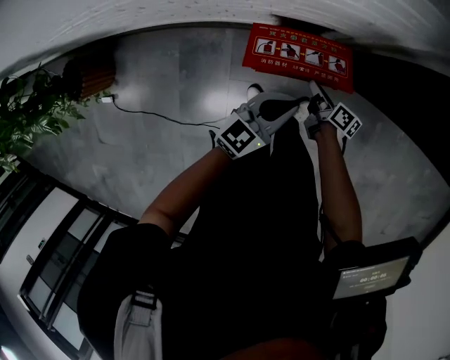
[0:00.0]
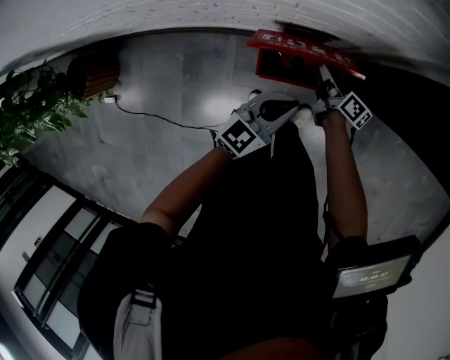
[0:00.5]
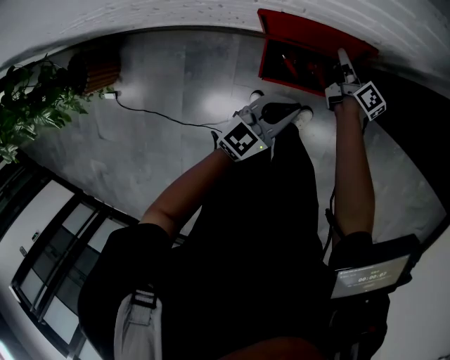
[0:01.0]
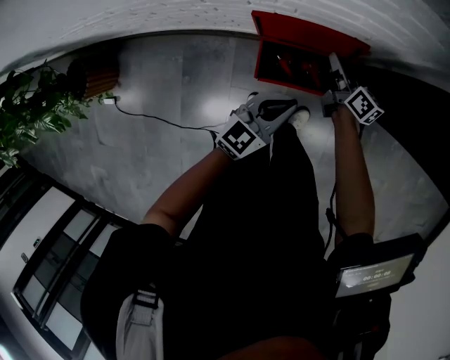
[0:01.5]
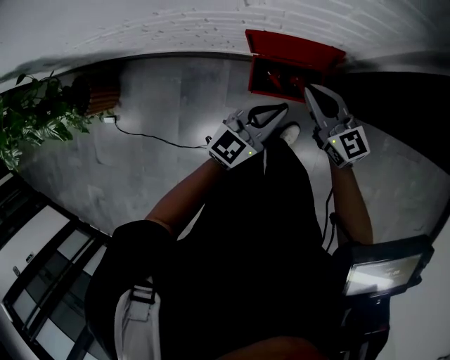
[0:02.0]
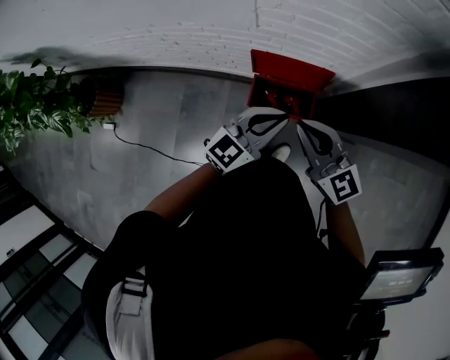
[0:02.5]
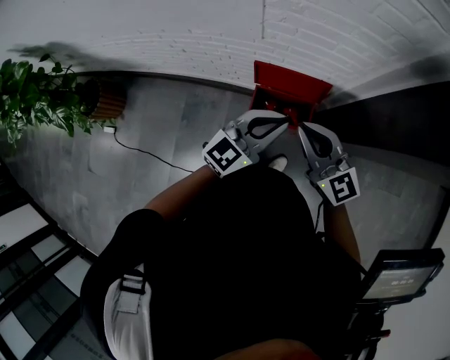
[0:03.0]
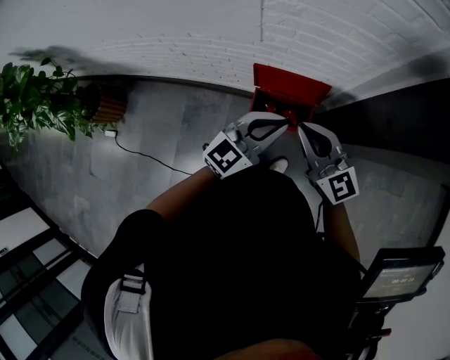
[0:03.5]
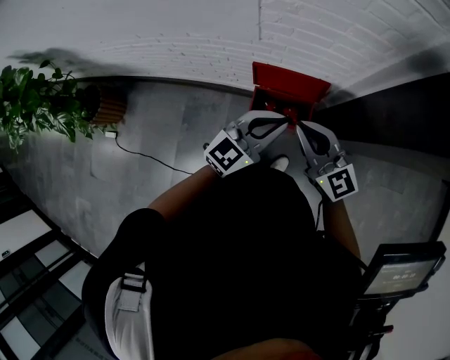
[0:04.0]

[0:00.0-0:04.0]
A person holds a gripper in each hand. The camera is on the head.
0:00.0 to 0:02.0: The right gripper travels upward by approximately 35 cm, and rolls counterclockwise, seen from behind, by some 60 degrees; the left gripper travels upward by roughly 15 cm.
0:02.0 to 0:04.0: The left gripper heads upward, covering roughly 15 cm; the right gripper shifts approximately 20 cm upward and backward.

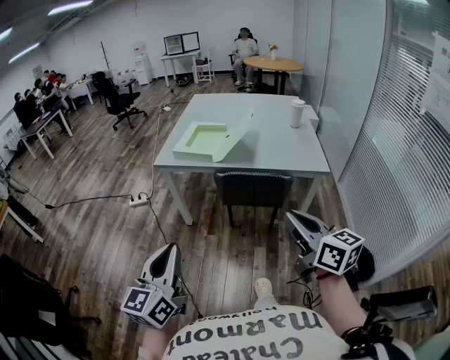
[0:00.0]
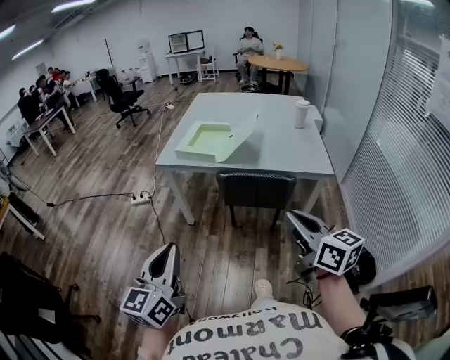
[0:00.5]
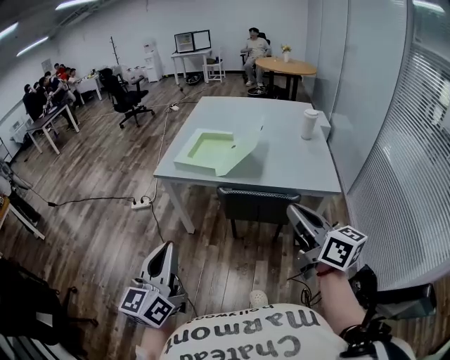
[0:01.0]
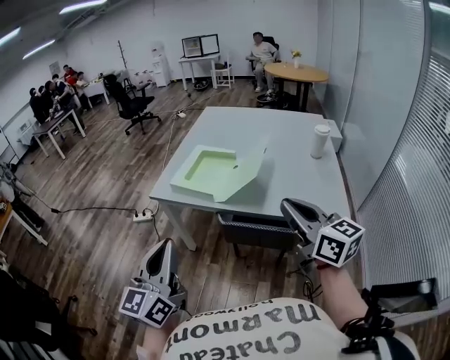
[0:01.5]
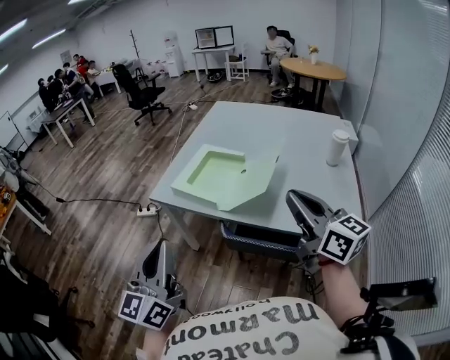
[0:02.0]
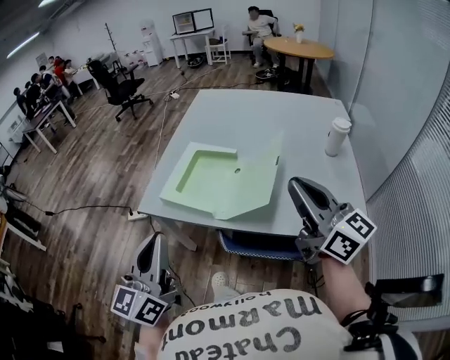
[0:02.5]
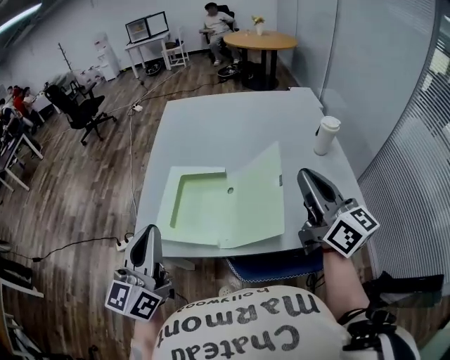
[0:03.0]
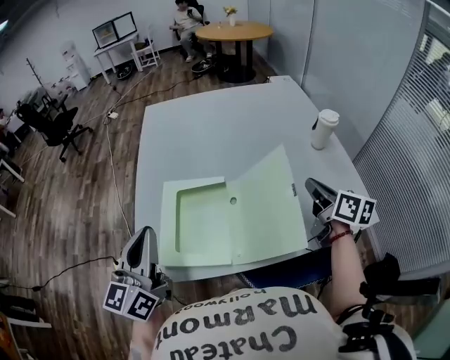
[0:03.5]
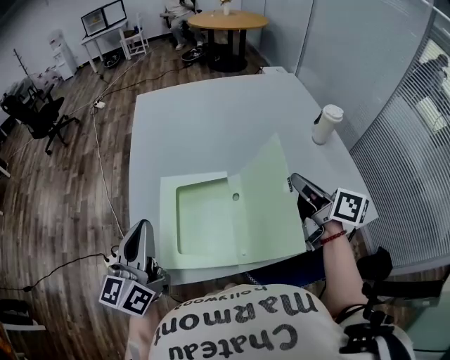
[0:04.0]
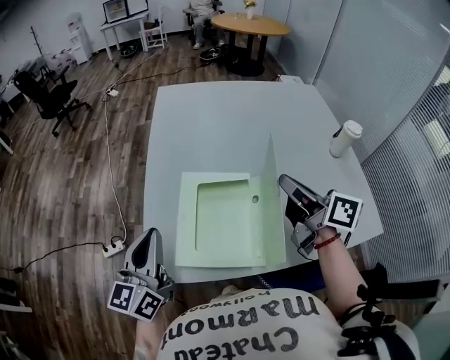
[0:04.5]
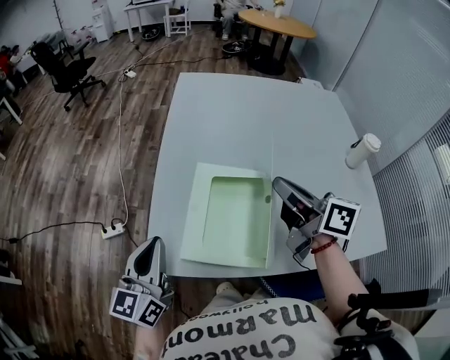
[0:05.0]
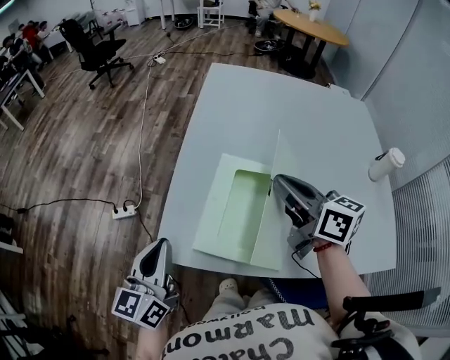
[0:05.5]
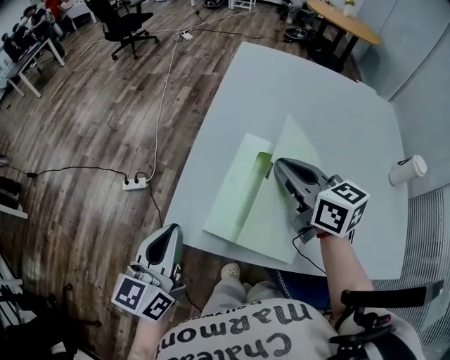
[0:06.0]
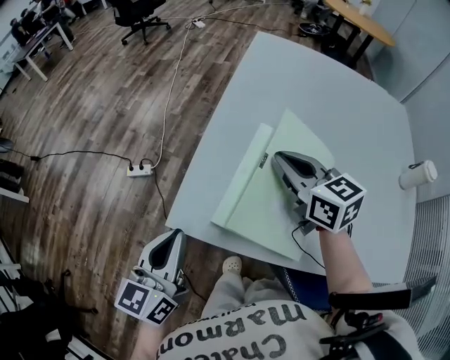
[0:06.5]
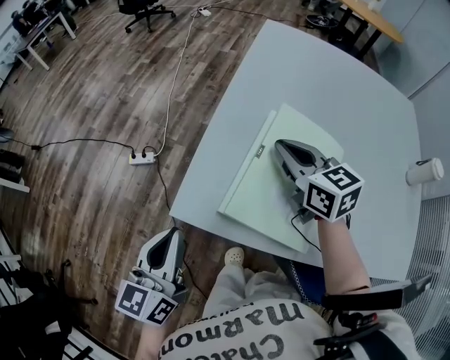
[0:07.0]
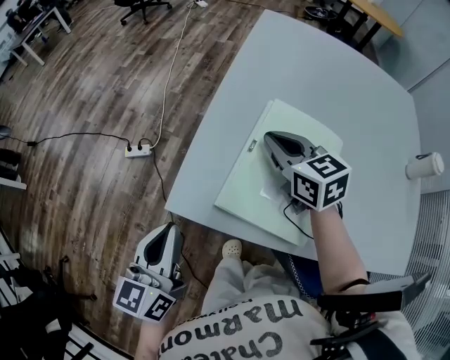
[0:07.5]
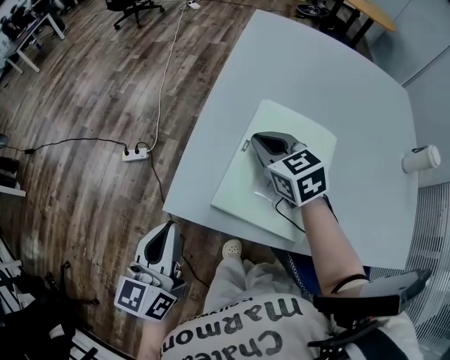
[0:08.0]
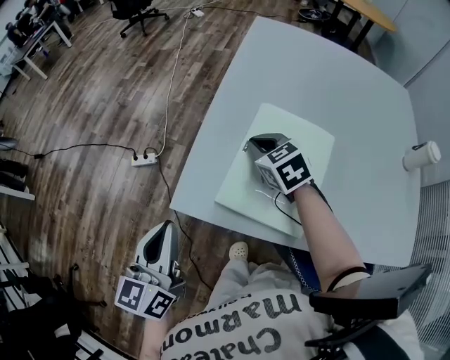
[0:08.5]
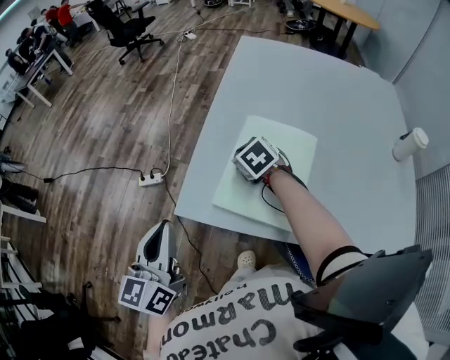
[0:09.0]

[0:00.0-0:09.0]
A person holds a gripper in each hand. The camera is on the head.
0:00.0 to 0:02.0: Both grippers travel together forward, approximately 30 cm.
0:02.0 to 0:04.5: The right gripper shifts by about 35 cm, and swivels approximately 30 degrees; the left gripper moves approximately 40 cm, and rotates roughly 30 degrees.
0:04.5 to 0:07.0: The left gripper heads downward, to the left and backward, covering about 20 cm, and changes its angle by roughly 20 degrees. Meanwhile the right gripper heads to the left, downward and forward, covering some 30 cm, and turns by about 40 degrees.
0:07.0 to 0:09.0: The right gripper travels downward by some 10 cm, and tips its fingers downward by about 30 degrees, while the left gripper is displaced upward by approximately 10 cm.

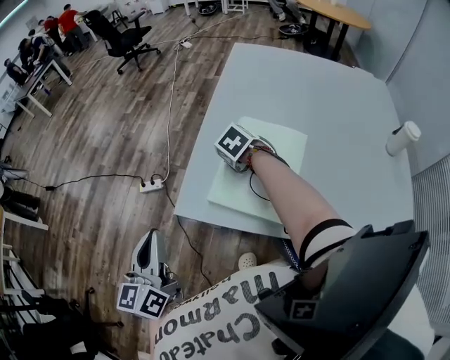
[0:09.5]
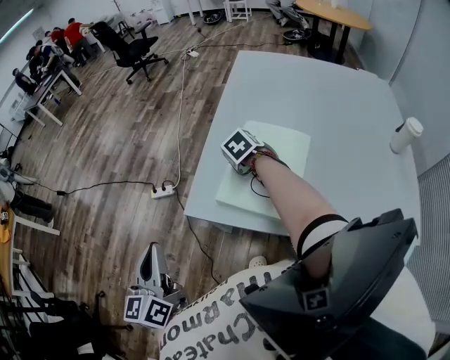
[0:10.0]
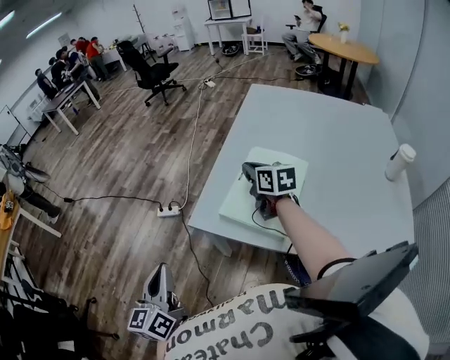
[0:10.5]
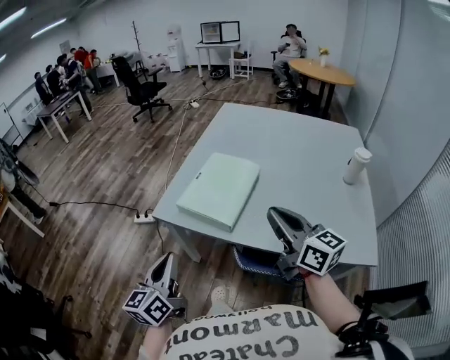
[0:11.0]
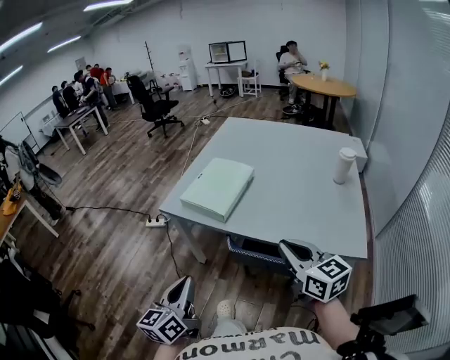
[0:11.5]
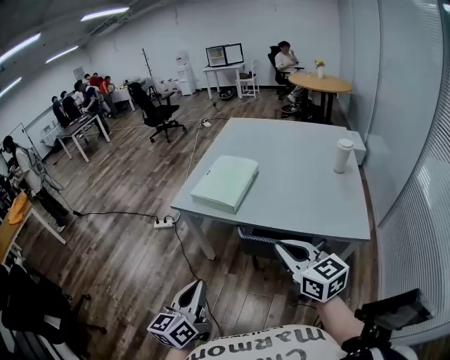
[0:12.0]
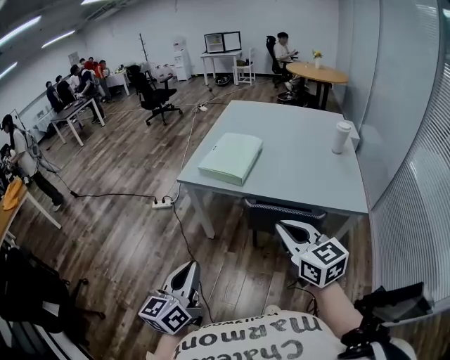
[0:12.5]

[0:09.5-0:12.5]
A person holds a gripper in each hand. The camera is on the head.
0:09.5 to 0:11.0: The left gripper goes roughly 20 cm backward and to the right. Meanwhile the right gripper moves backward, upward and to the right, roughly 40 cm, and angles its fingers upward, by roughly 70 degrees.
0:11.0 to 0:12.5: The two grippers go approximately 30 cm backward. The right gripper rotates about 20 degrees.

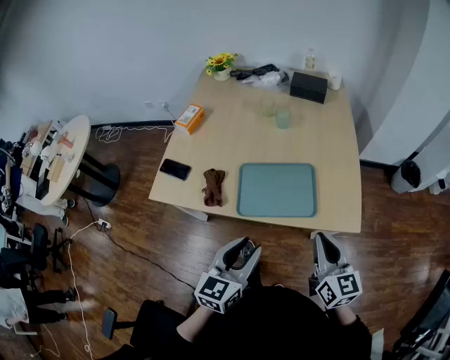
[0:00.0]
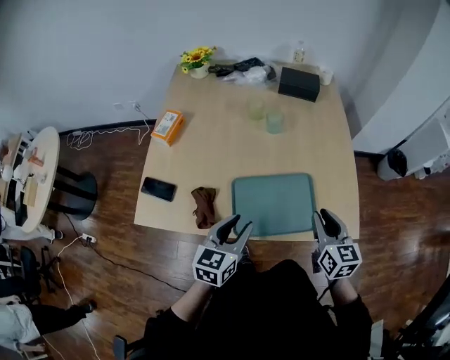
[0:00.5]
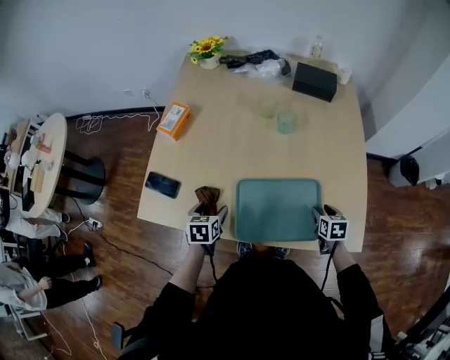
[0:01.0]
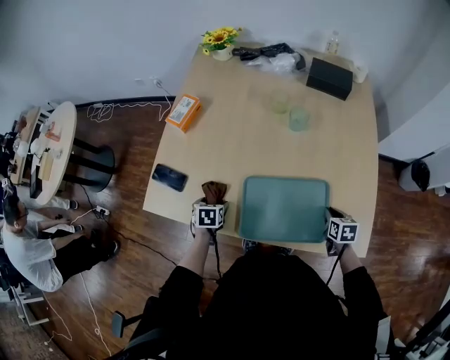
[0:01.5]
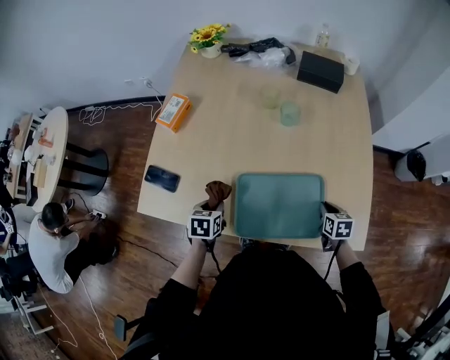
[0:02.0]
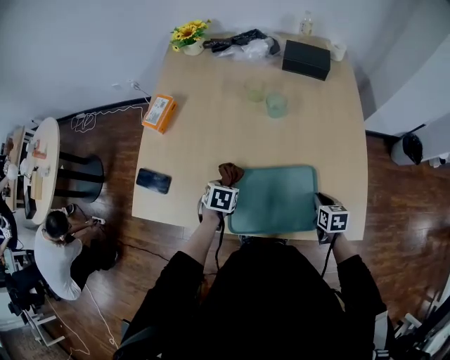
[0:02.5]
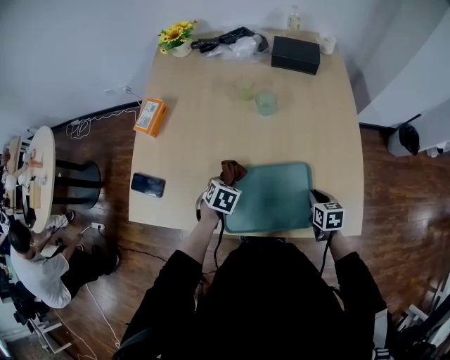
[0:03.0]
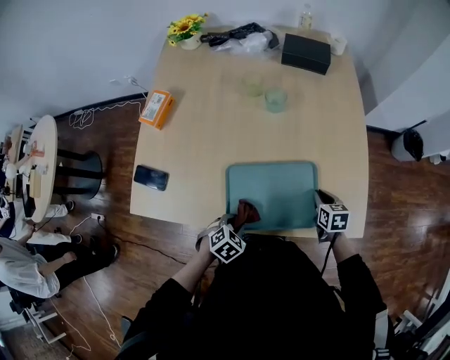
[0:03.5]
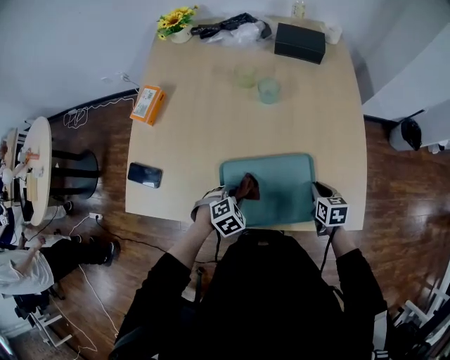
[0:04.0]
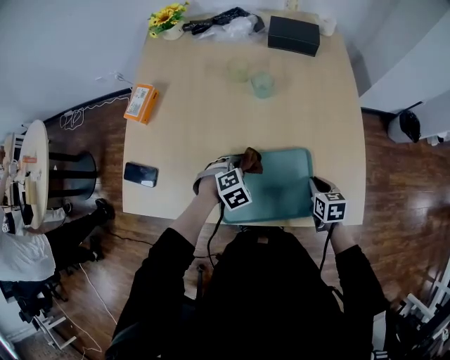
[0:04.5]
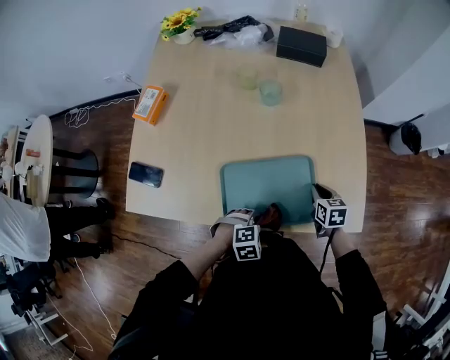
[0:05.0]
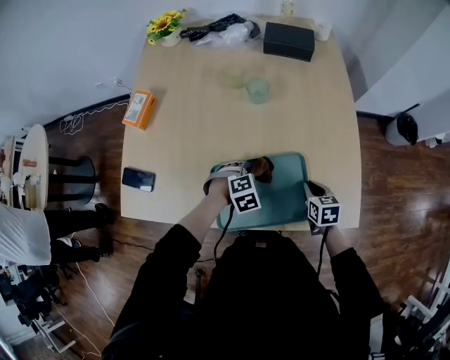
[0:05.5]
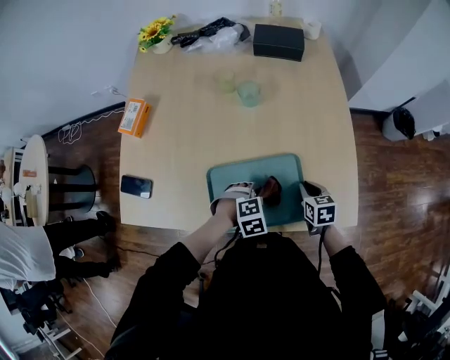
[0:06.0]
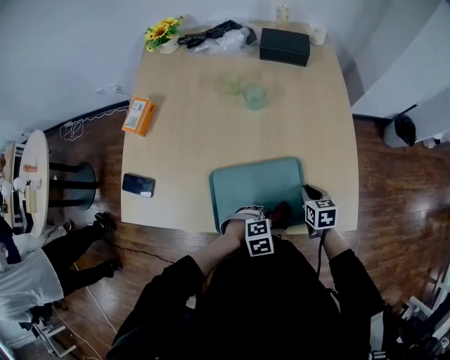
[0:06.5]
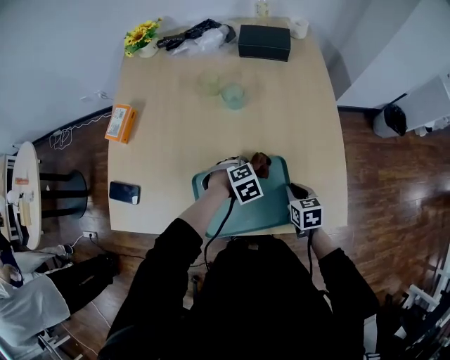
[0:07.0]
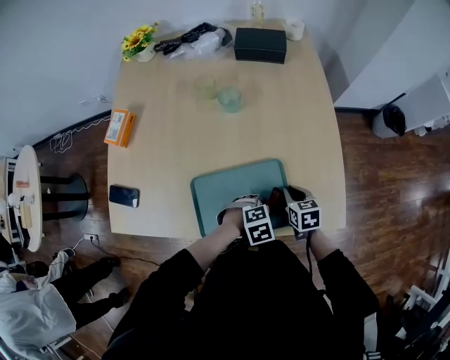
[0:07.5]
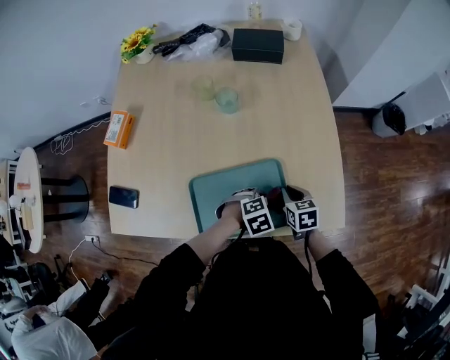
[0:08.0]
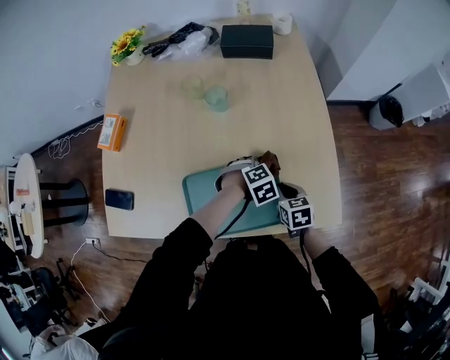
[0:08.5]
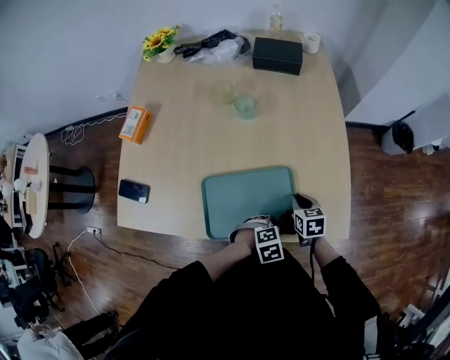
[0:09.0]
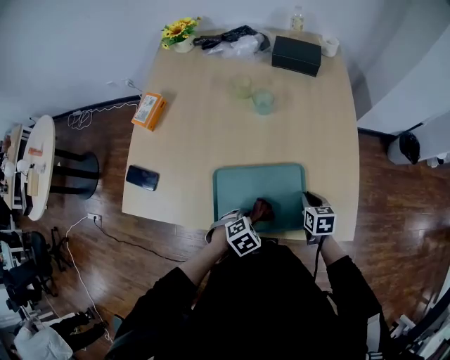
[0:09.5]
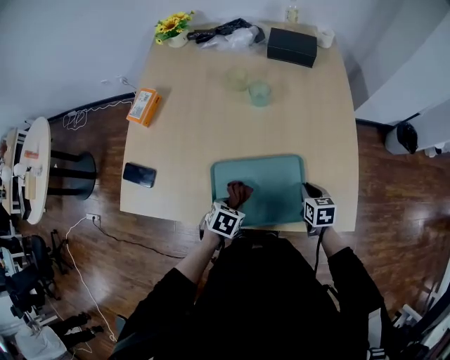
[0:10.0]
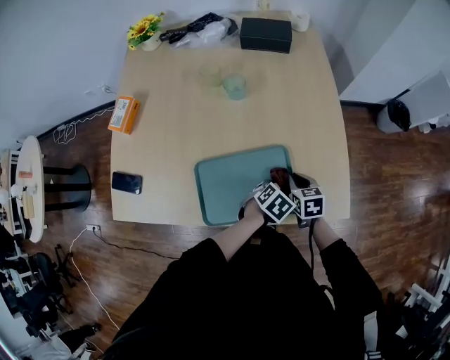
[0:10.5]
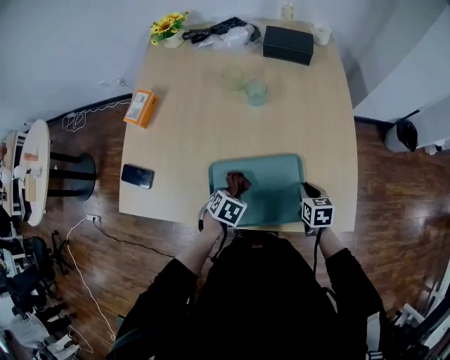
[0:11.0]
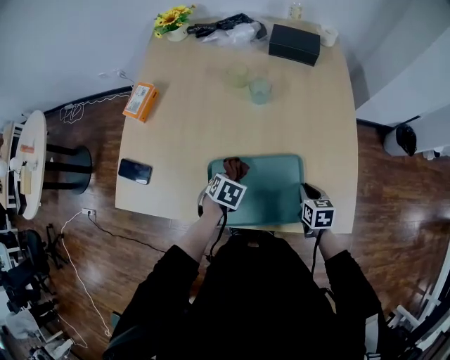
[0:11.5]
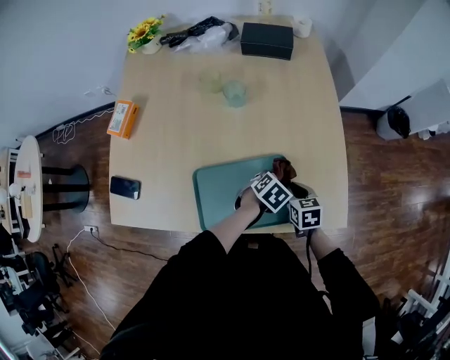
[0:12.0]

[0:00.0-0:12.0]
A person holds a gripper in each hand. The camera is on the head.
0:00.0 to 0:02.0: The left gripper moves forward, downward and to the left, approximately 35 cm, tips its fingers downward by about 40 degrees, and opens, then closes once more. The right gripper shifts about 35 cm downward and forward, tilts its fingers some 40 degrees downward, and opens, then closes again.
0:02.0 to 0:04.0: The left gripper goes forward and backward, some 15 cm each way, reversing 2 times, and twists some 60 degrees clockwise, seen from behind.
0:04.0 to 0:06.0: The left gripper moves forward and backward over approximately 15 cm, changing direction 3 times.
0:06.0 to 0:08.0: The left gripper swings forward and backward, roughly 15 cm each way, with 2 reversals.
0:08.0 to 0:10.0: The left gripper moves approximately 15 cm, and rotates around the line of its fingers by about 50 degrees, counterclockwise from behind.
0:10.0 to 0:12.0: The left gripper swings left and right, about 20 cm each way, with 2 reversals, and changes its angle by about 30 degrees.
